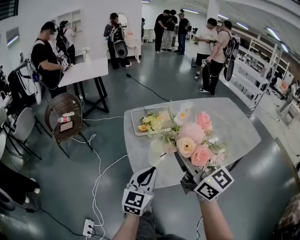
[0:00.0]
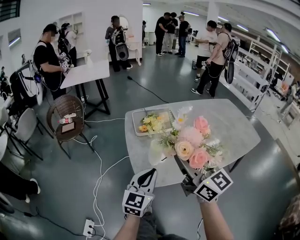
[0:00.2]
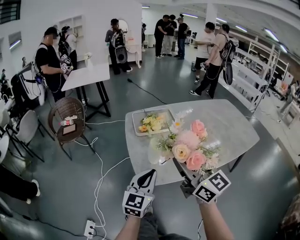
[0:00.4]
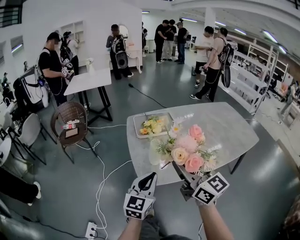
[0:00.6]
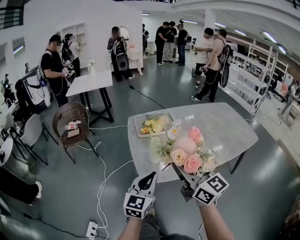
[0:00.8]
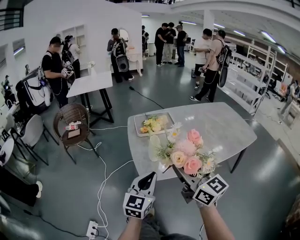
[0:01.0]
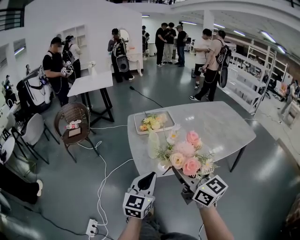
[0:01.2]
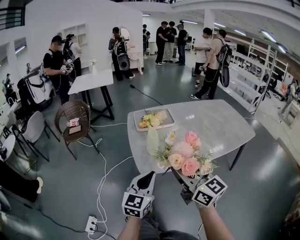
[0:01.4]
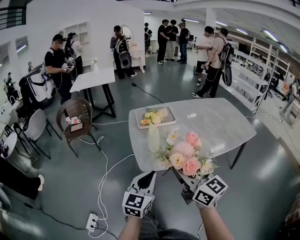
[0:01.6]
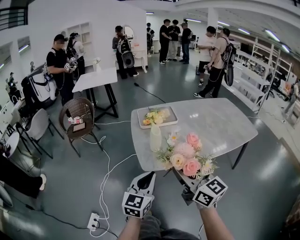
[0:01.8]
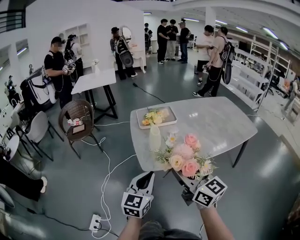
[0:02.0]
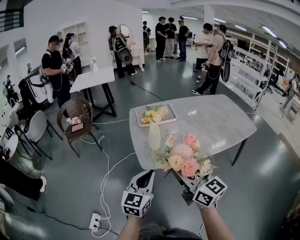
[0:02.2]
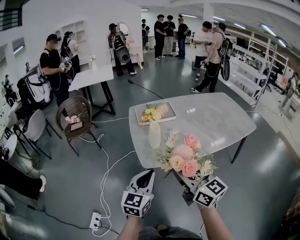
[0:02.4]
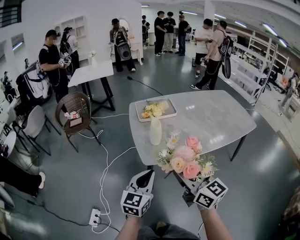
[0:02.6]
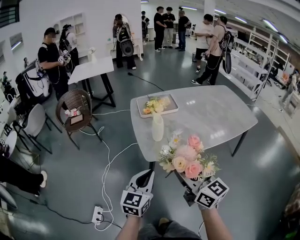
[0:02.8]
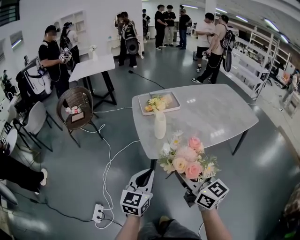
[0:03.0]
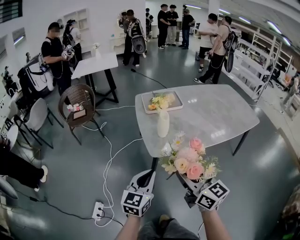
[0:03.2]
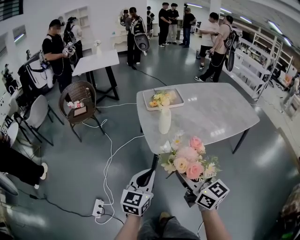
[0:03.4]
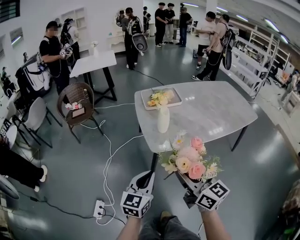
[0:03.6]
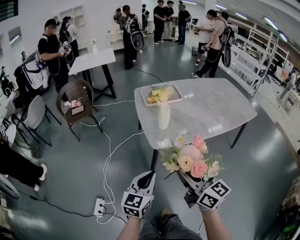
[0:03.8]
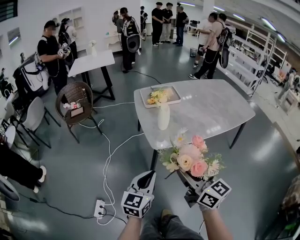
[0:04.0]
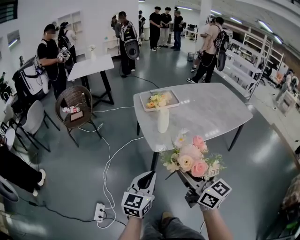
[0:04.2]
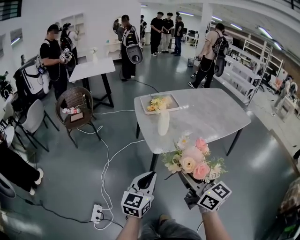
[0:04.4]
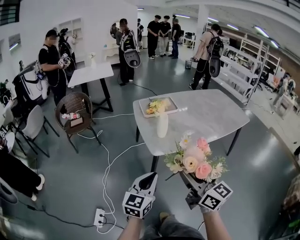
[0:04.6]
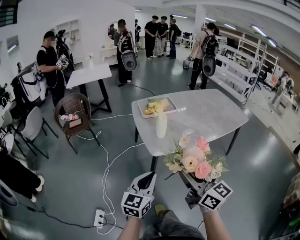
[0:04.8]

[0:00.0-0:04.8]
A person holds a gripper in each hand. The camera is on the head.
0:00.0 to 0:01.6: The grippers both shift backward by roughly 15 cm.
0:01.6 to 0:03.2: The left gripper goes approximately 5 cm to the left. The right gripper is displaced backward by about 5 cm.
0:03.2 to 0:04.8: The right gripper is displaced backward by about 5 cm; the left gripper changes place by about 5 cm.

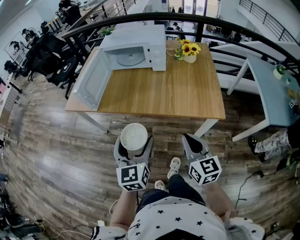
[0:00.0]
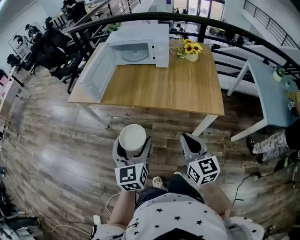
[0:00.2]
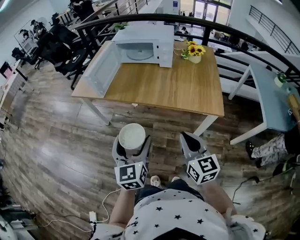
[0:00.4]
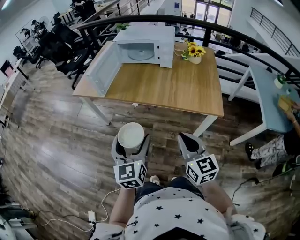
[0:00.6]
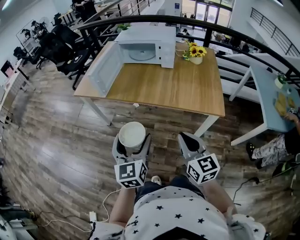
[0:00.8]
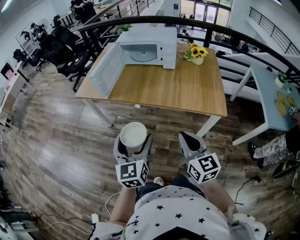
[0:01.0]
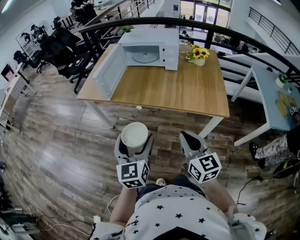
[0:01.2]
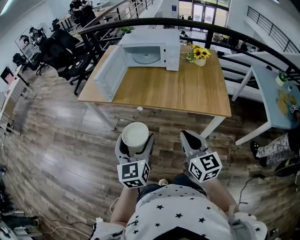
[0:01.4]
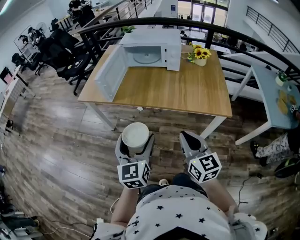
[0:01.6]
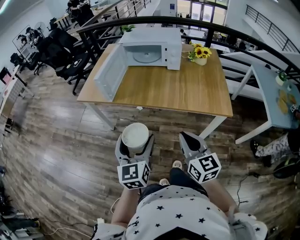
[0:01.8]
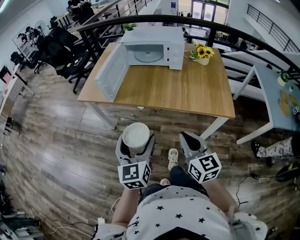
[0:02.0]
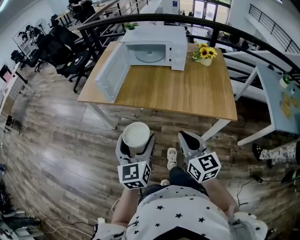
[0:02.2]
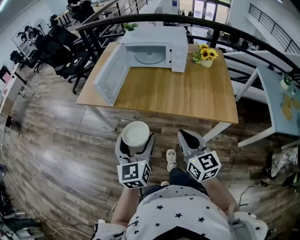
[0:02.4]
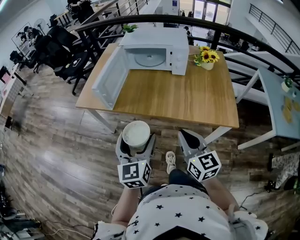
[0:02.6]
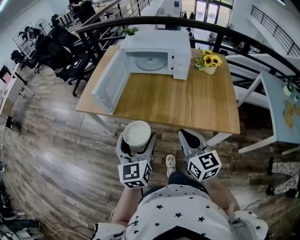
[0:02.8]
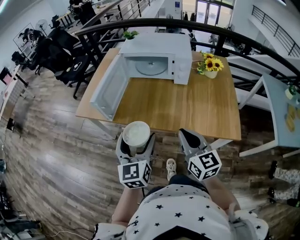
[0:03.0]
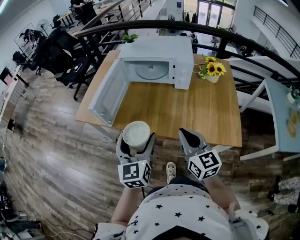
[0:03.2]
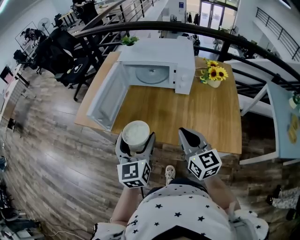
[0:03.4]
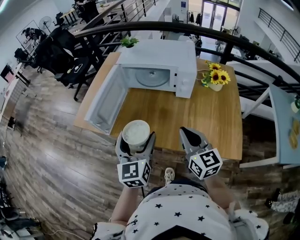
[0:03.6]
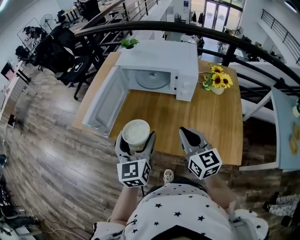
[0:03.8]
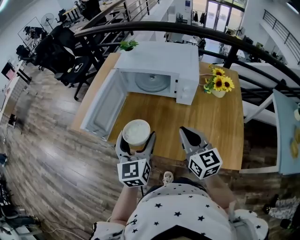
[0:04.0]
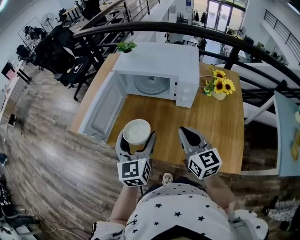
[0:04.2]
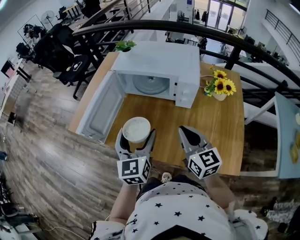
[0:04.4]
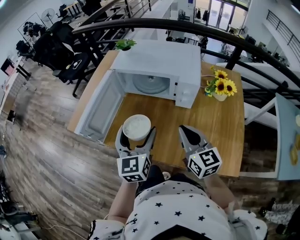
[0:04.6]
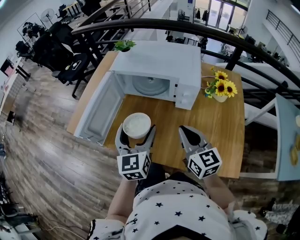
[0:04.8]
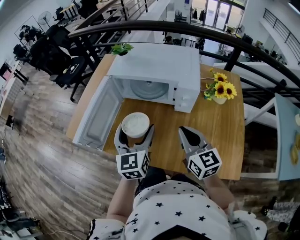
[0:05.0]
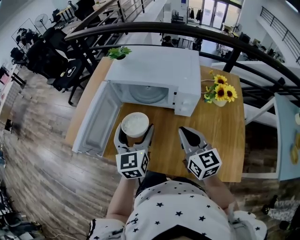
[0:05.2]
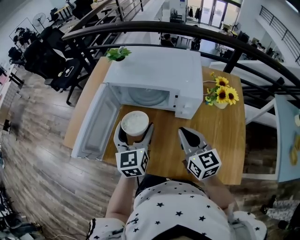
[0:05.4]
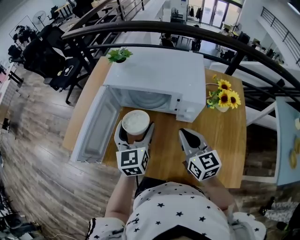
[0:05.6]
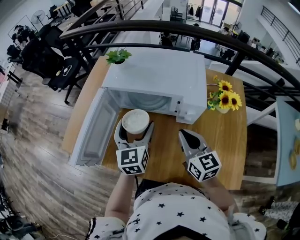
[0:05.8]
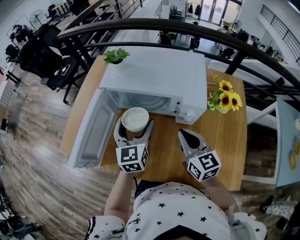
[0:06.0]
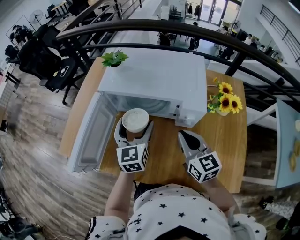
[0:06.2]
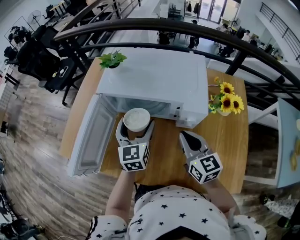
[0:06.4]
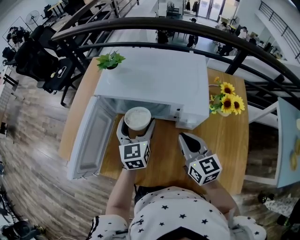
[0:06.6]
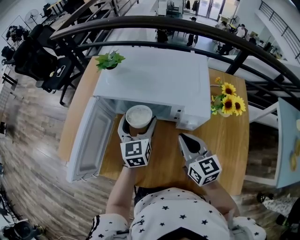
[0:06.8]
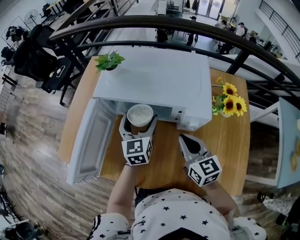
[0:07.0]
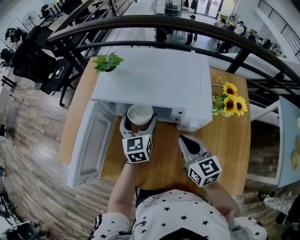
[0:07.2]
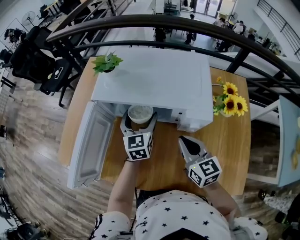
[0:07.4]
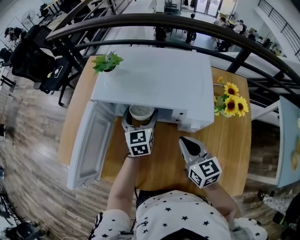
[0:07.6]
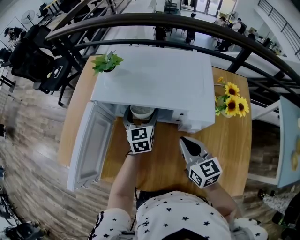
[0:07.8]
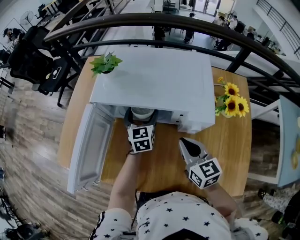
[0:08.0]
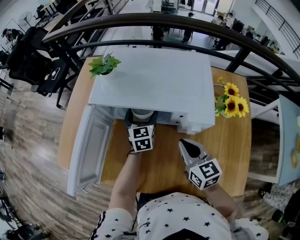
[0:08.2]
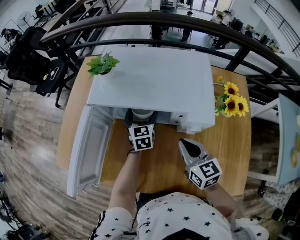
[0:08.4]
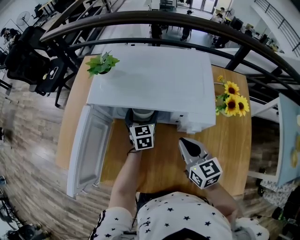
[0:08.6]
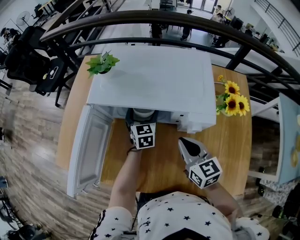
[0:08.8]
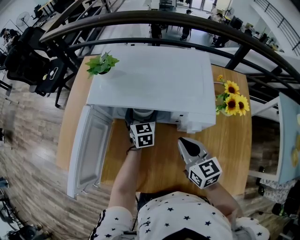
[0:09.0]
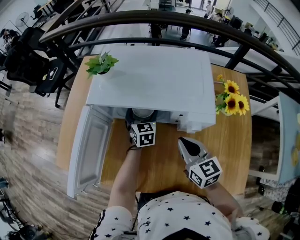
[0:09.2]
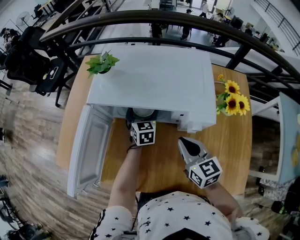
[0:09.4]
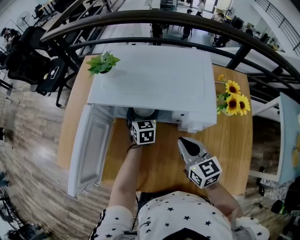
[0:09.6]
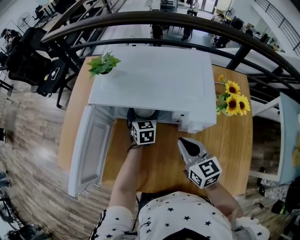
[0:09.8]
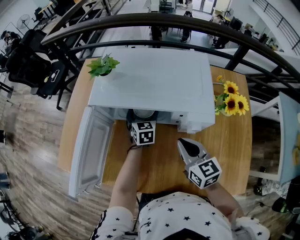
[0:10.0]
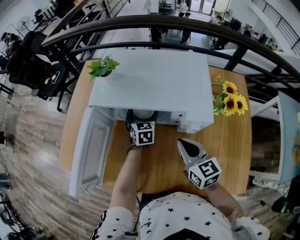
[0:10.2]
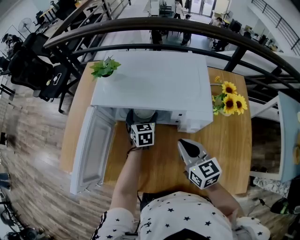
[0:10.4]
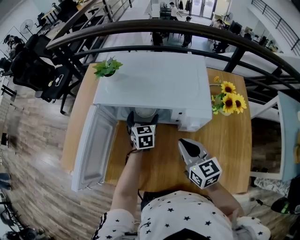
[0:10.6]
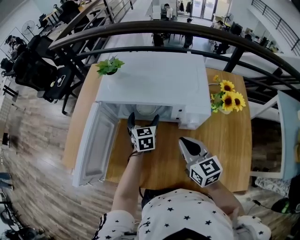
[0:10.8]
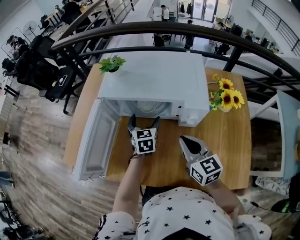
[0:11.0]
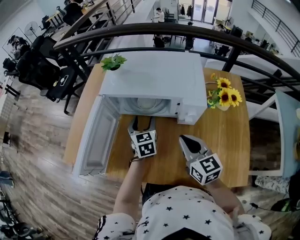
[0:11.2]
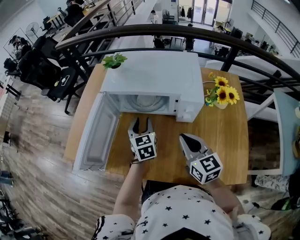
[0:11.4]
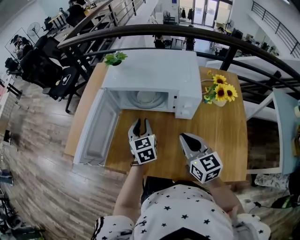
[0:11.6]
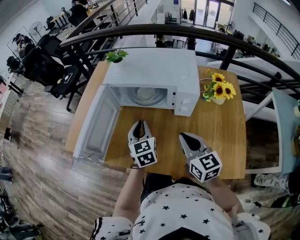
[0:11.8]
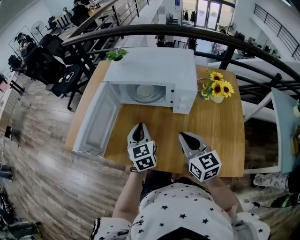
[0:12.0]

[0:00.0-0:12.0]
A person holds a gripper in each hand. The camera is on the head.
0:00.0 to 0:01.6: The grippers both shift to the left by approximately 10 cm.
0:01.6 to 0:03.0: The grippers both shift forward by some 20 cm.
0:03.0 to 0:04.4: The grippers both shift forward and to the right by about 20 cm.
0:04.4 to 0:06.0: Both grippers move forward, roughly 15 cm.
0:06.0 to 0:07.6: The right gripper changes place by about 5 cm; the left gripper moves forward and downward, about 15 cm.
0:07.6 to 0:09.0: The left gripper is displaced downward by some 5 cm.
0:09.0 to 0:10.4: There are only small adjustments of the grippers.
0:10.4 to 0:12.0: The right gripper travels backward by some 15 cm, while the left gripper shifts roughly 25 cm backward and upward, and closes its fingers.

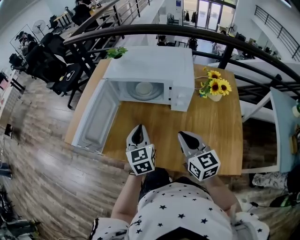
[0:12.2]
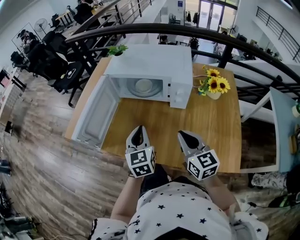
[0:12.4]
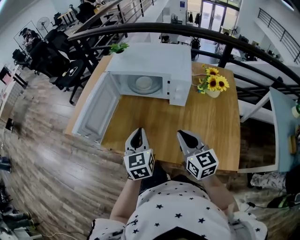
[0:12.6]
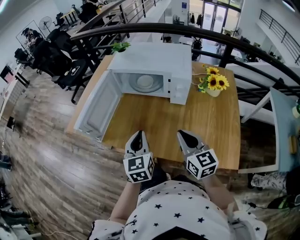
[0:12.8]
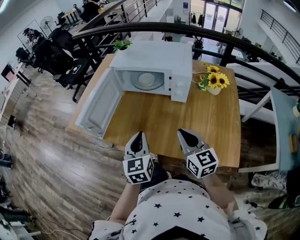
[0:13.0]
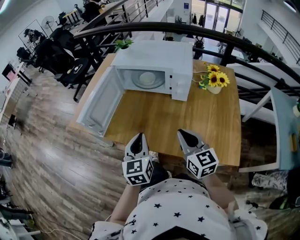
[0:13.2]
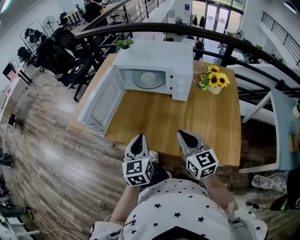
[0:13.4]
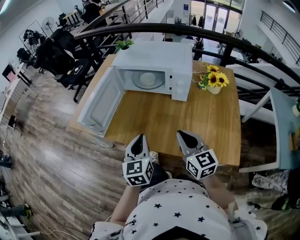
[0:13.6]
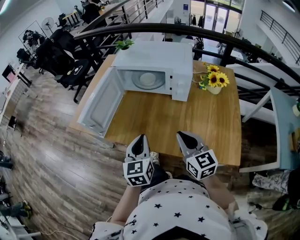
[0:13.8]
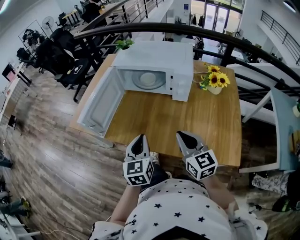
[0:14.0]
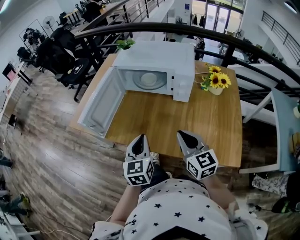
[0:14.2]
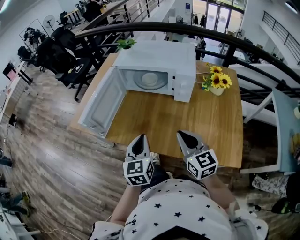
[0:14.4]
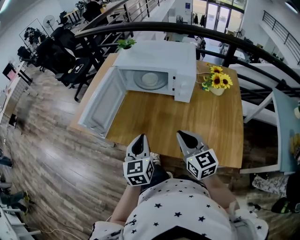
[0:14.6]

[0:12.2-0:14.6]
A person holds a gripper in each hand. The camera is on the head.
0:12.2 to 0:13.4: The right gripper moves backward, approximately 10 cm; the left gripper heads backward, covering roughly 15 cm.
0:13.4 to 0:14.6: The grippers make only small movements.

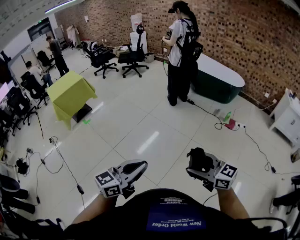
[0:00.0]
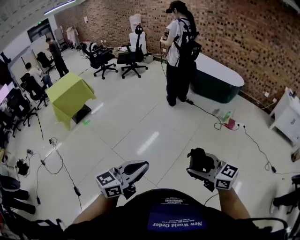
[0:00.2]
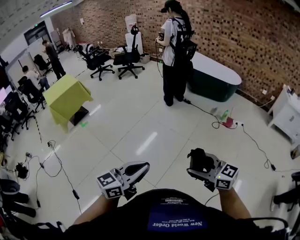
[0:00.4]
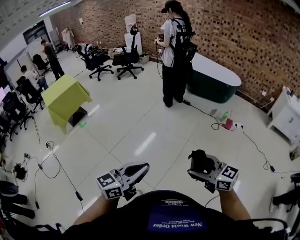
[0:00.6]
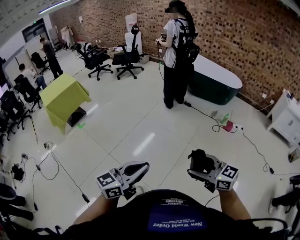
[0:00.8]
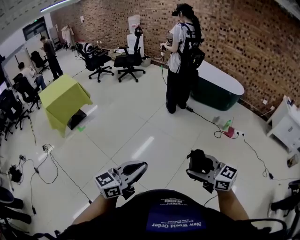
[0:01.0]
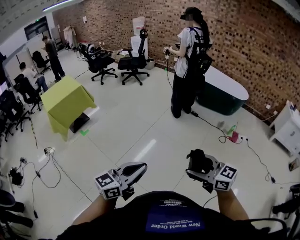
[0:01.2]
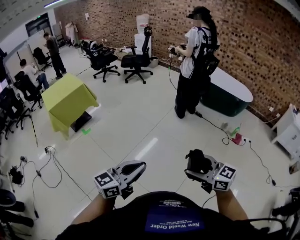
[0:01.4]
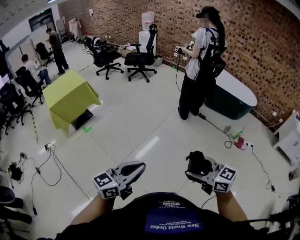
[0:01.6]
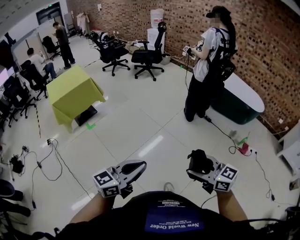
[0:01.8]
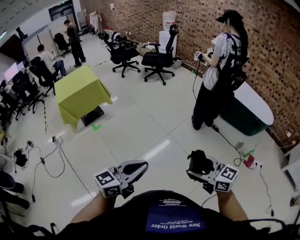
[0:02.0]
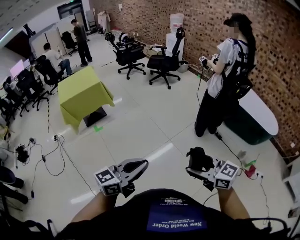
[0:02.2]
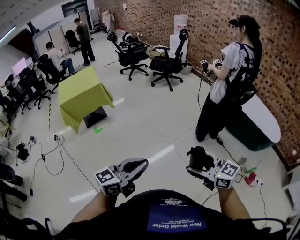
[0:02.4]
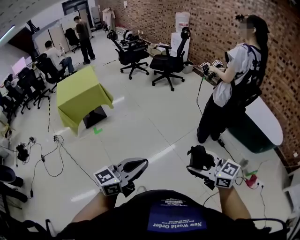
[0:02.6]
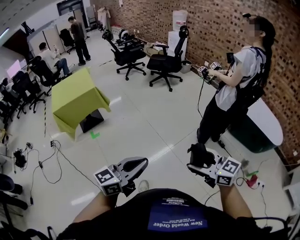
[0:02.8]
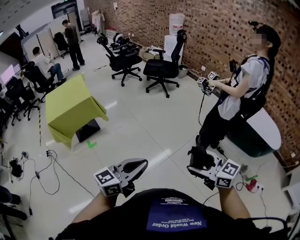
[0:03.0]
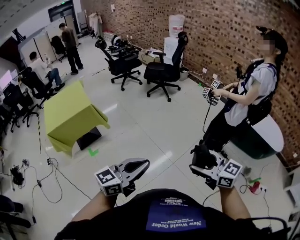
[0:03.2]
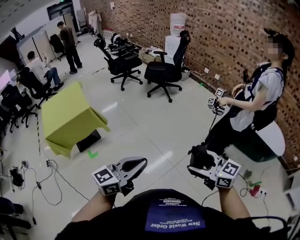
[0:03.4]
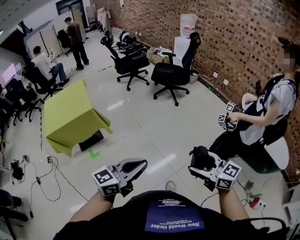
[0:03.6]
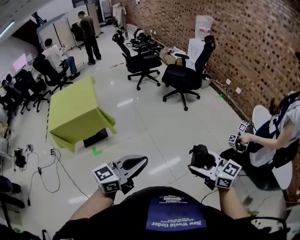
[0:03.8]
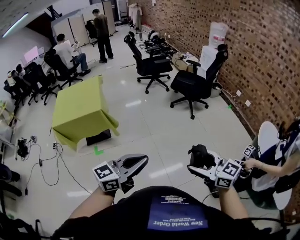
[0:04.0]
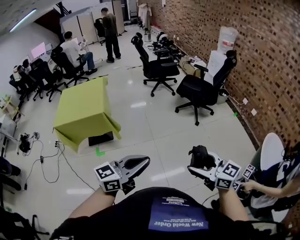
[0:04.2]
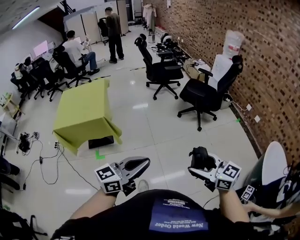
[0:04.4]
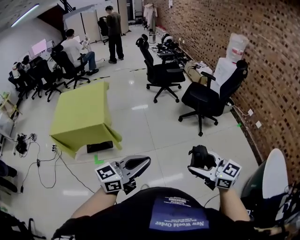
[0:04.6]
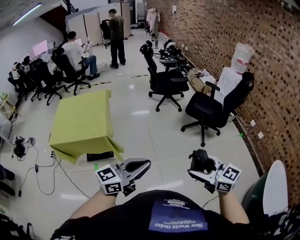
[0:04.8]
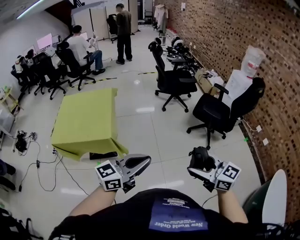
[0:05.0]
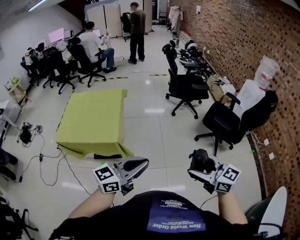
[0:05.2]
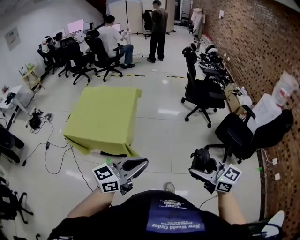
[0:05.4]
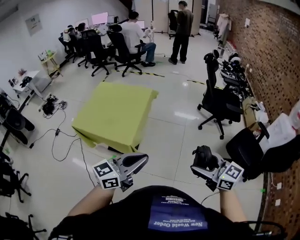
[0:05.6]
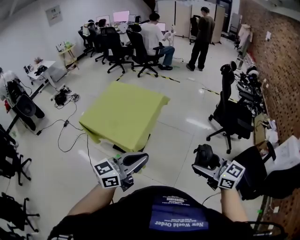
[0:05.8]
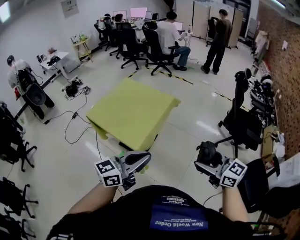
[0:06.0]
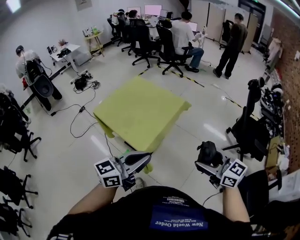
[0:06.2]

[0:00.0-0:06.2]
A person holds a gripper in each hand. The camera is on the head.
0:00.0 to 0:01.6: Both grippers travel together forward and to the left, about 35 cm.
0:01.6 to 0:03.2: The pair of grippers is taken forward, some 60 cm.
0:03.2 to 0:04.6: The pair of grippers is taken forward, roughly 50 cm. The left gripper changes its angle by some 20 degrees; the right gripper rotates roughly 30 degrees.
0:04.6 to 0:06.2: The pair of grippers is taken about 50 cm. The right gripper turns by some 50 degrees. Meanwhile the left gripper rotates approximately 50 degrees.
